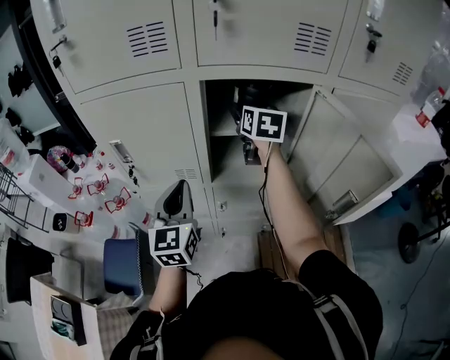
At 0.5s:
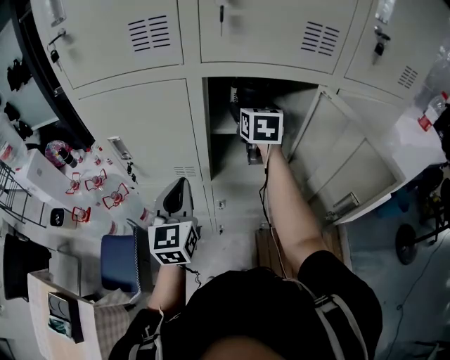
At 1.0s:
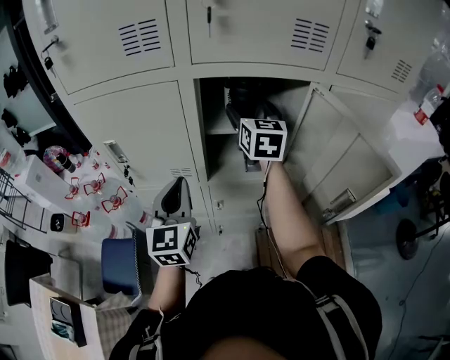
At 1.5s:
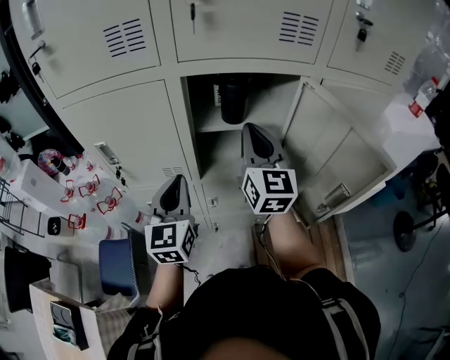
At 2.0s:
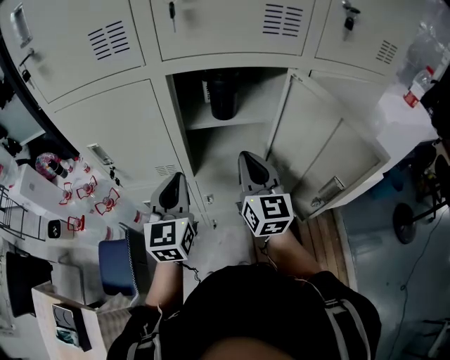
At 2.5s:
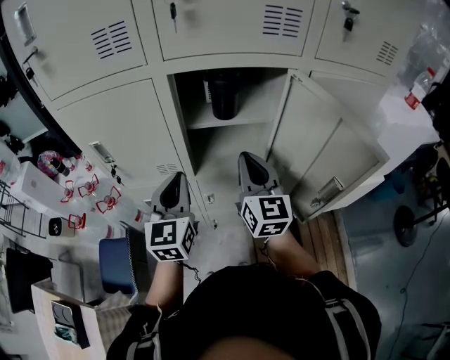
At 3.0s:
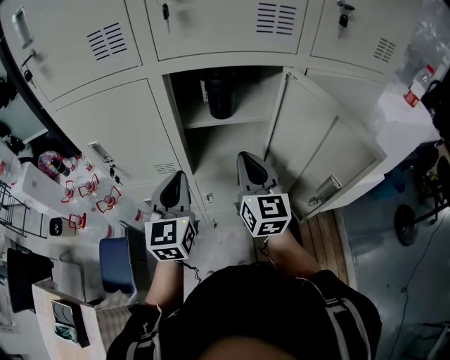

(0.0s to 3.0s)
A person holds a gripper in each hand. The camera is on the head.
0.0s - 1.5s: The right gripper is displaced backward by approximately 15 cm, rotates roughly 20 degrees, and closes its fingers.
1.5s - 3.0s: The right gripper shifts some 10 cm downward and backward.

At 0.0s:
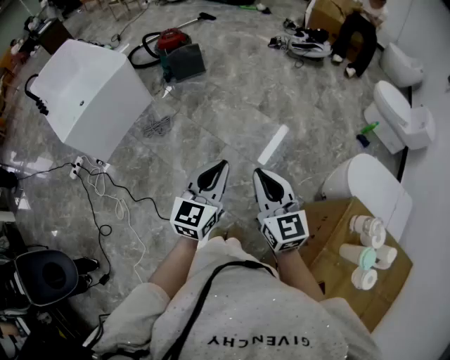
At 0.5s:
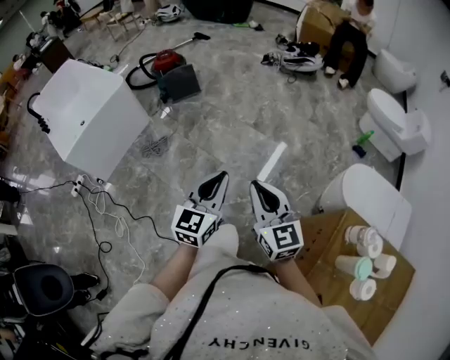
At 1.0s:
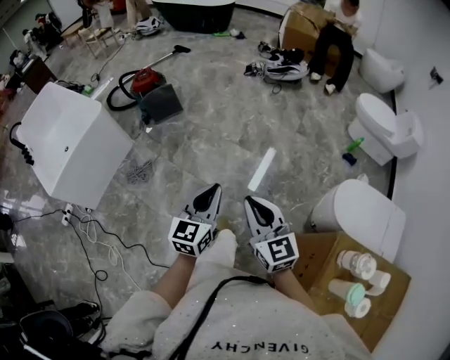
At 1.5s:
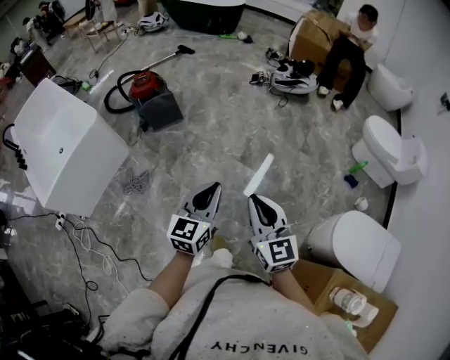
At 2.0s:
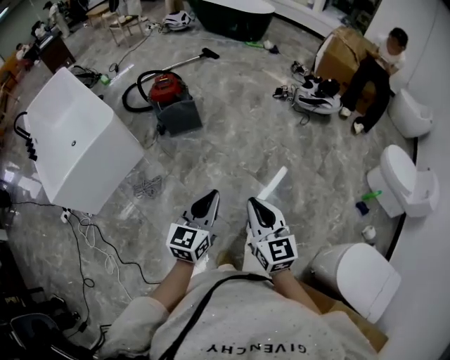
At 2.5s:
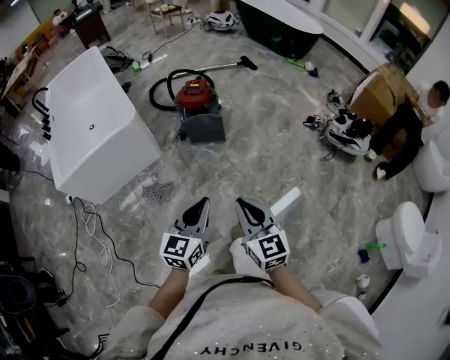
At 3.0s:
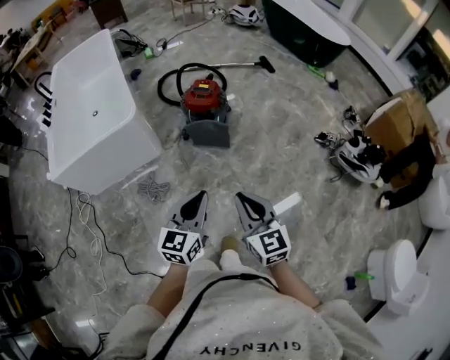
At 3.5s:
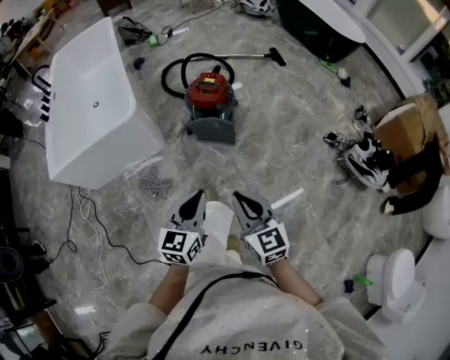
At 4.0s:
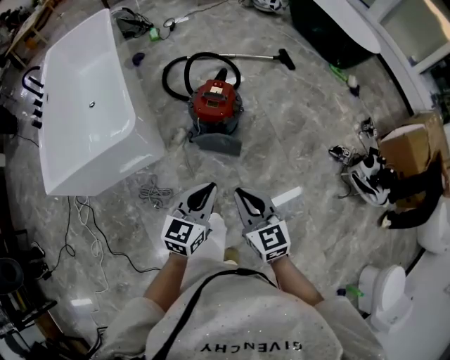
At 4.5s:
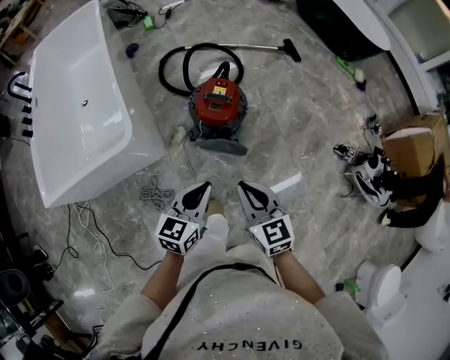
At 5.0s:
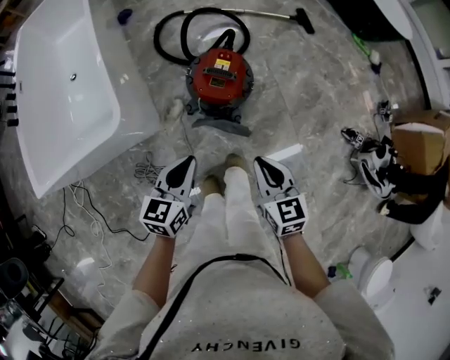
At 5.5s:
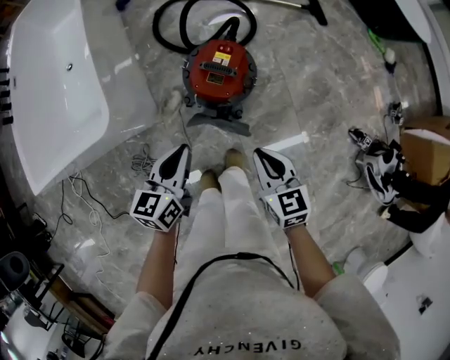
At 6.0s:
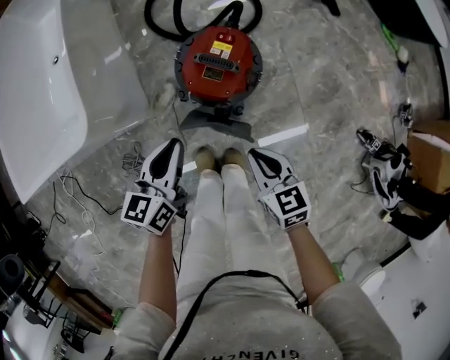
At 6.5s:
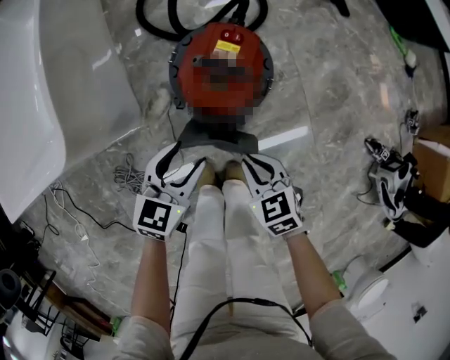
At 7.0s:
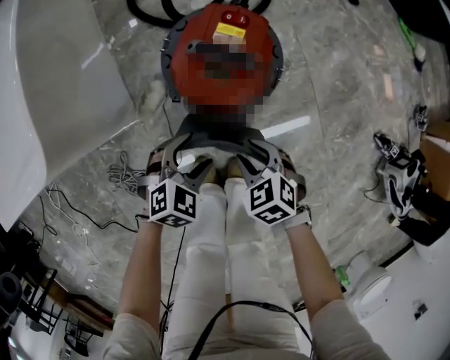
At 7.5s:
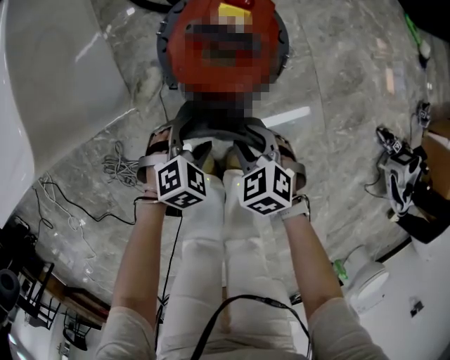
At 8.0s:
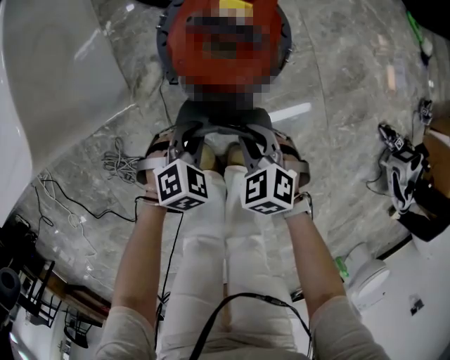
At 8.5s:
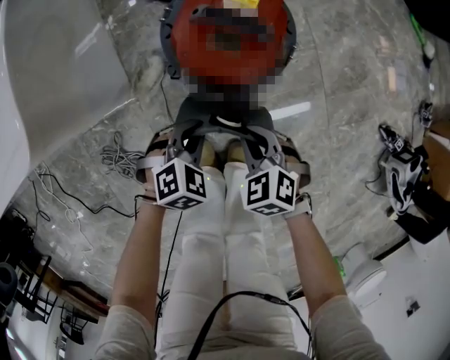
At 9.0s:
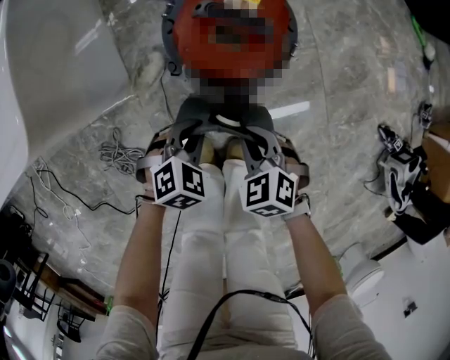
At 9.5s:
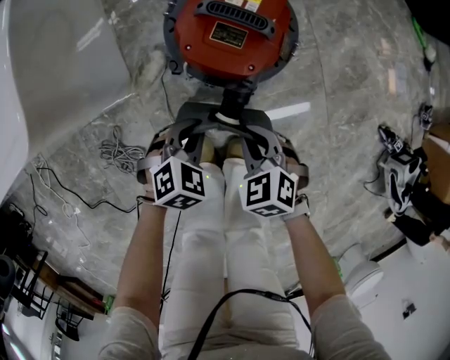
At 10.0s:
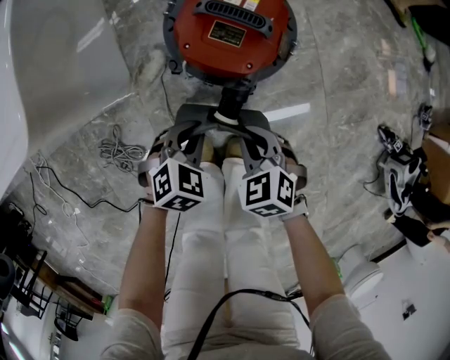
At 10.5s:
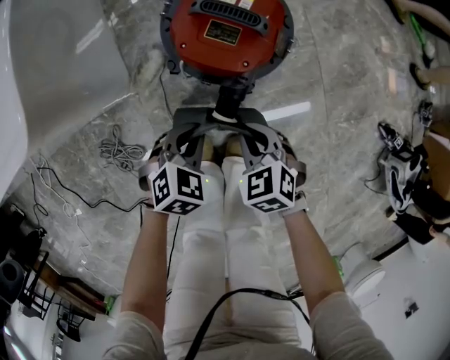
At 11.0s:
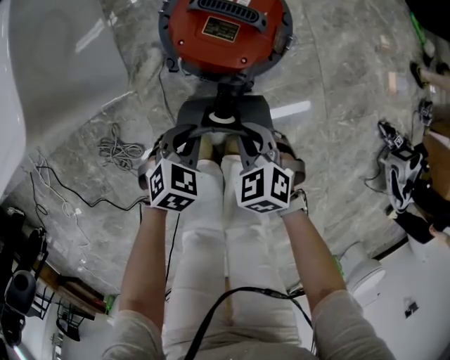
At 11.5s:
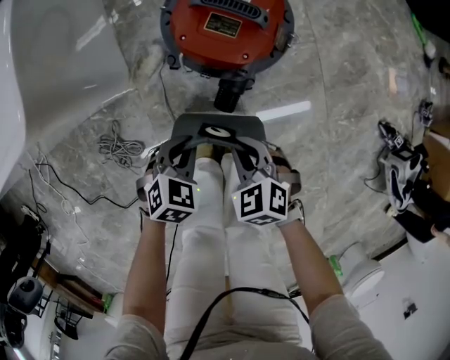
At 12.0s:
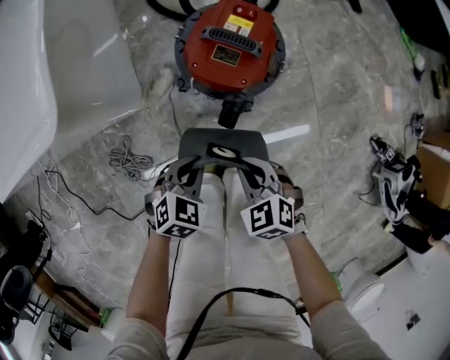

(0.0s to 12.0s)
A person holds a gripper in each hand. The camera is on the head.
0.0s - 2.0s: Both grippers move forward, about 35 cm.
2.0s - 4.0s: Both grippers are carried roughly 50 cm. The right gripper turns by approximately 40 degrees; the left gripper turns by some 20 degrees.
4.0s - 6.0s: The right gripper heads downward and forward, covering roughly 35 cm, and swivels roughly 20 degrees; the left gripper goes about 30 cm forward and downward, and swivels some 30 degrees.
6.0s - 8.0s: The grippers both shift downward by some 25 cm. The right gripper turns by some 40 degrees, and opens and closes again. The left gripper rotates around the line of its fingers by some 60 degrees, clockwise from behind, and opens, then closes again.
8.0s - 10.0s: The grippers stay close to where they were, moving slightly.
10.0s - 12.0s: The grippers both shift upward and backward by about 10 cm.

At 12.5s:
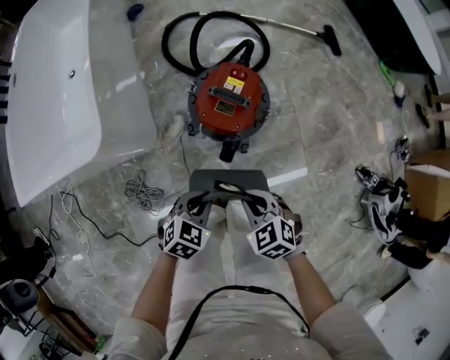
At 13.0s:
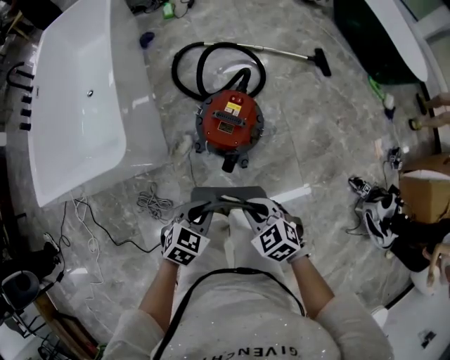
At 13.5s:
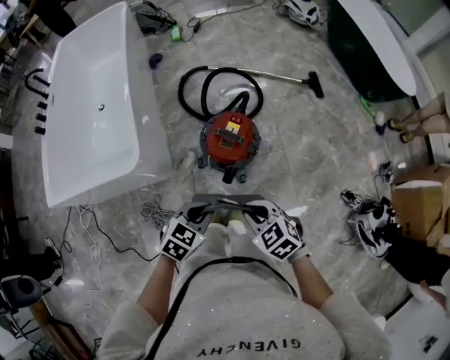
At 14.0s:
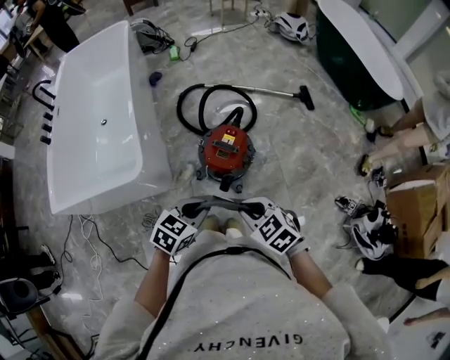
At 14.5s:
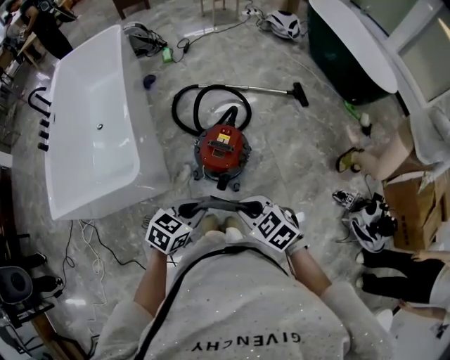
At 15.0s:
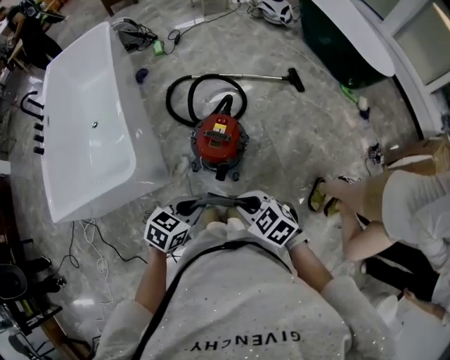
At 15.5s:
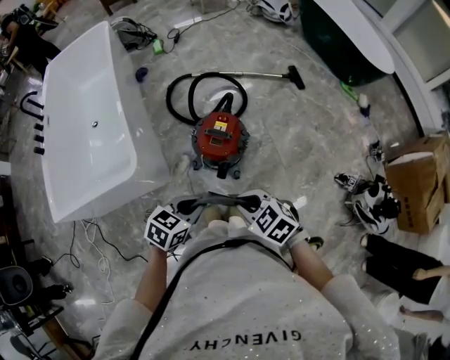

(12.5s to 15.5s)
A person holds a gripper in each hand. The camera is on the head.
12.5s - 14.0s: The two grippers go about 25 cm upward.
14.0s - 15.5s: The grippers stay close to where they were, moving slightly.

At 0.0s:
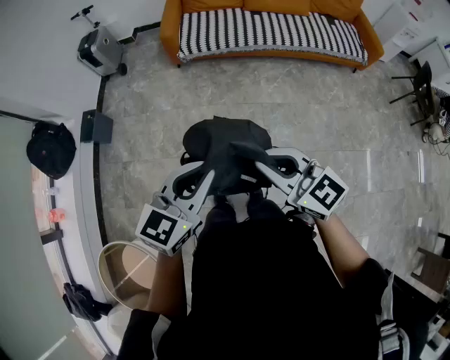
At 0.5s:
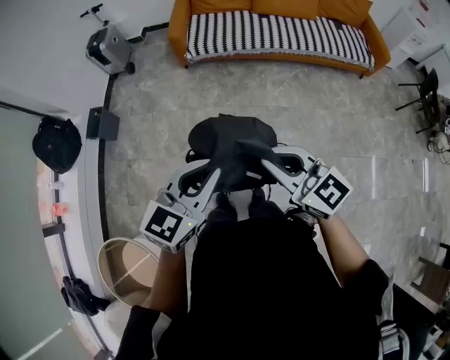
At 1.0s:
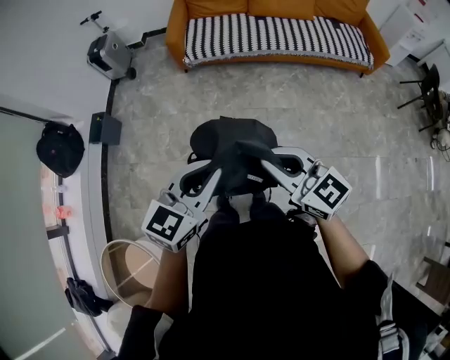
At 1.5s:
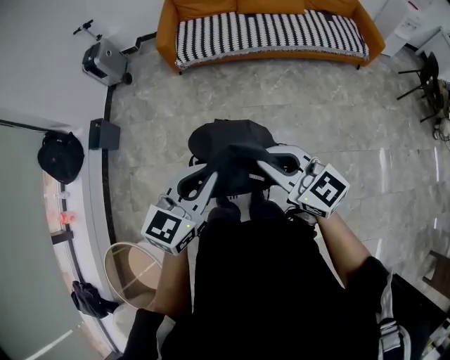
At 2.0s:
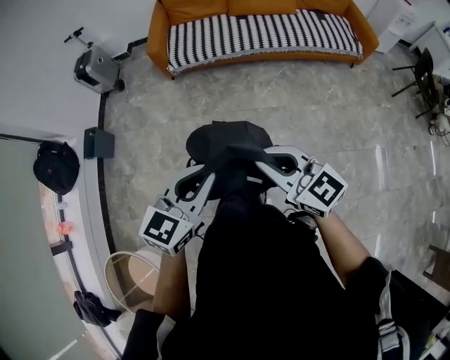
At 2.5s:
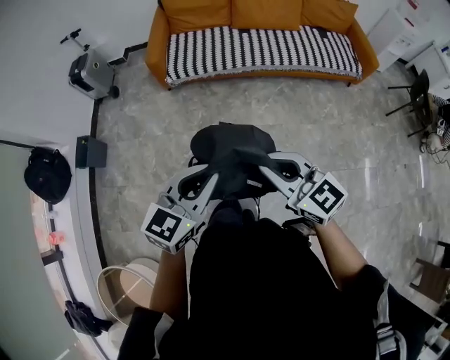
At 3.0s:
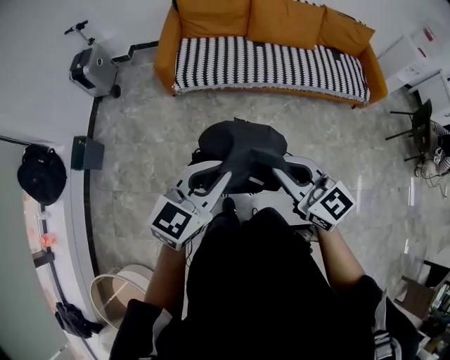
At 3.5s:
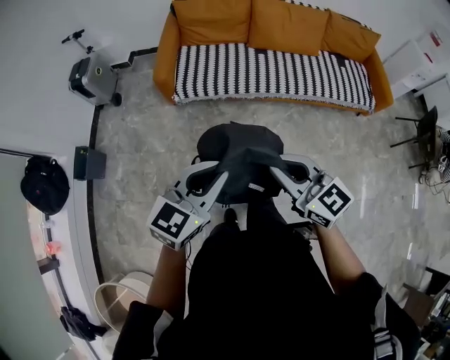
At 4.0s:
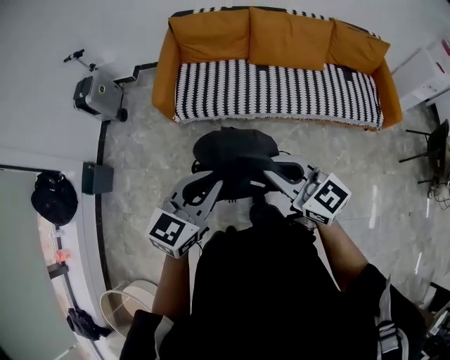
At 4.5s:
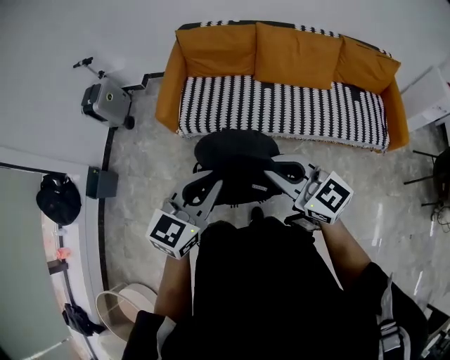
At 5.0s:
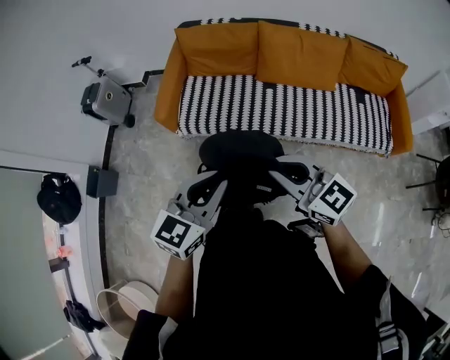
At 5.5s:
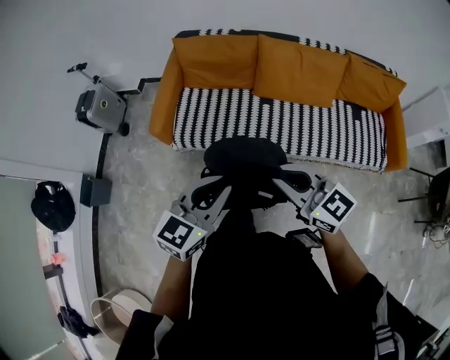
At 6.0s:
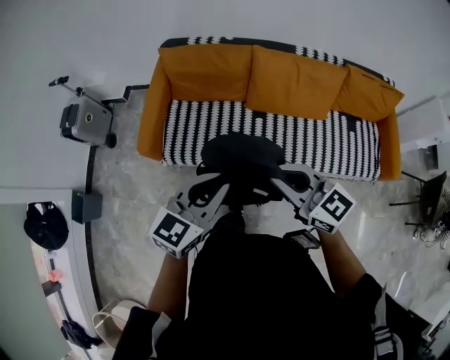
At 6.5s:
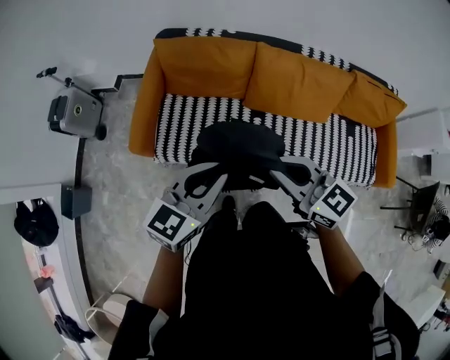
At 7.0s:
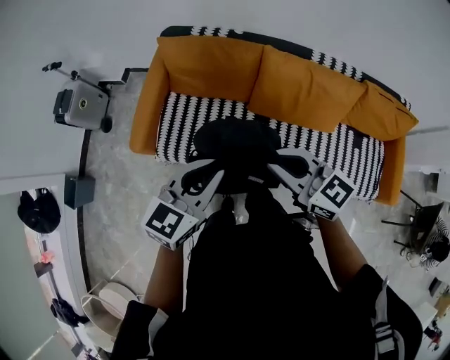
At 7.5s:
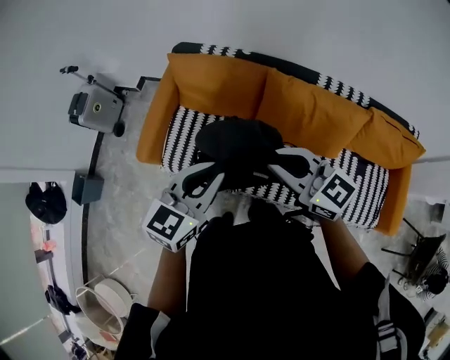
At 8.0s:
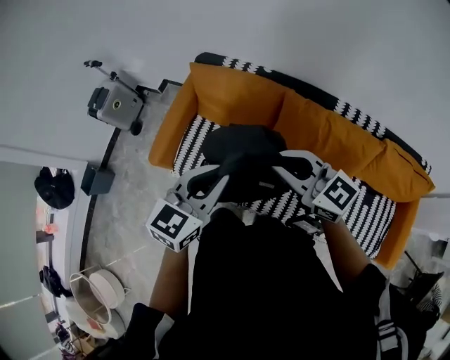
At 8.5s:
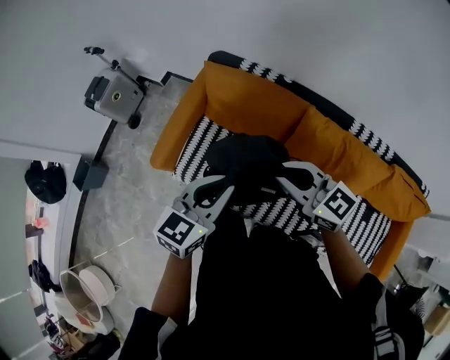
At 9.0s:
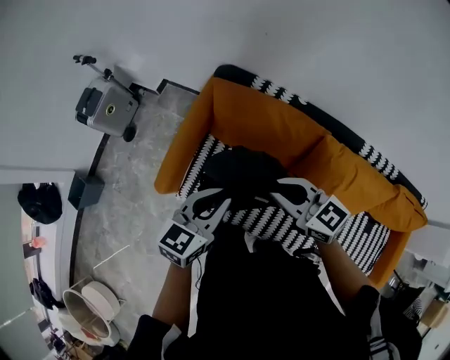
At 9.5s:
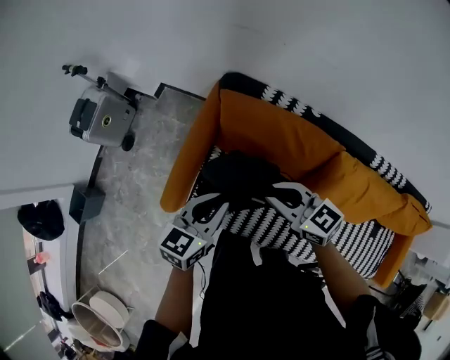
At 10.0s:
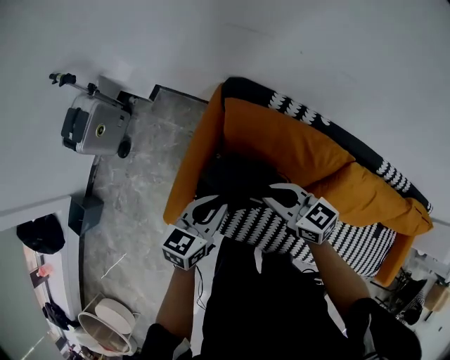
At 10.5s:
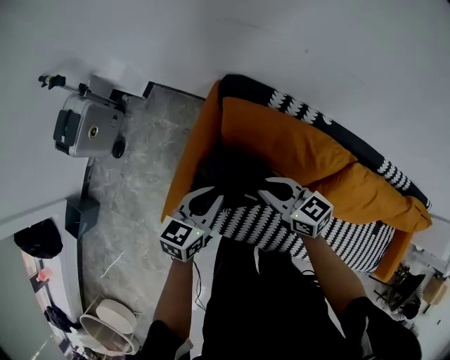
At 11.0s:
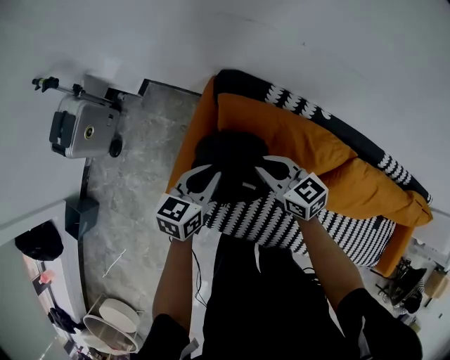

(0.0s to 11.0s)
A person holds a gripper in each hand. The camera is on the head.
0.0s - 2.0s: Both grippers move to the right, approximately 10 cm.
2.0s - 3.5s: Both grippers travel together forward, roughly 30 cm.
3.5s - 5.5s: Both grippers travel together forward and to the right, some 30 cm.
5.5s - 7.5s: The grippers both shift forward by some 30 cm.
7.5s - 9.0s: The left gripper goes about 25 cm forward, to the left and downward. Meanwhile the right gripper travels forward and to the left by about 25 cm.
9.0s - 11.0s: Both grippers travel together forward and downward, some 25 cm.
